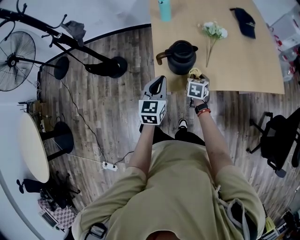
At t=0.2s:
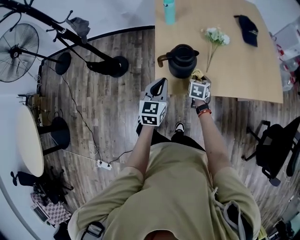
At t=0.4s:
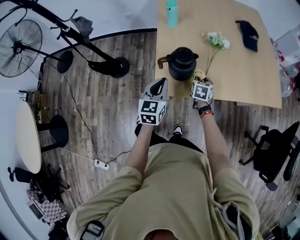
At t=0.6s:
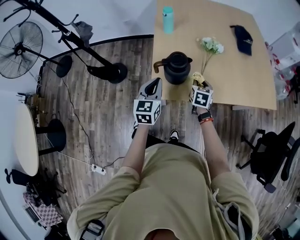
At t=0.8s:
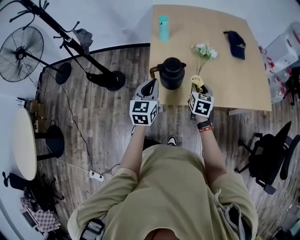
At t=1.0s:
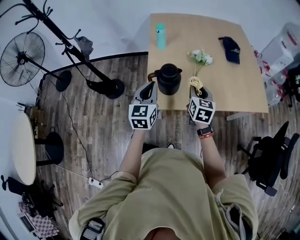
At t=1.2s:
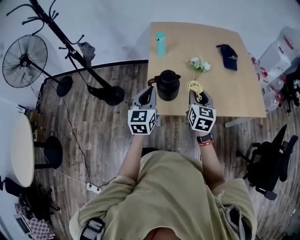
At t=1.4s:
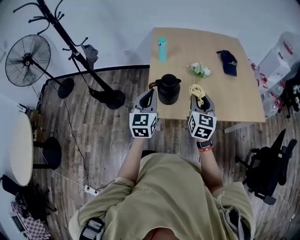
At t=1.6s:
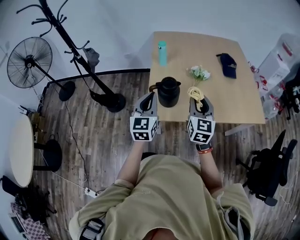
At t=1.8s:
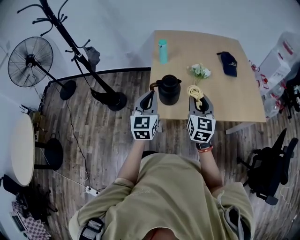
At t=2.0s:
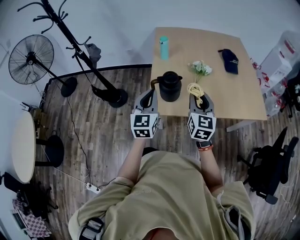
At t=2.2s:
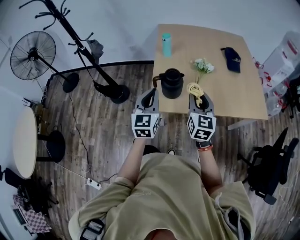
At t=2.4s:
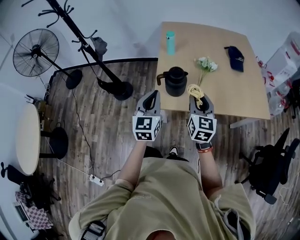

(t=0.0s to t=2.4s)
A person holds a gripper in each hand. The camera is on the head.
t=0.0s - t=1.2s: The right gripper moves upward, roughly 25 cm, and angles its fingers upward, by about 30 degrees. The left gripper goes roughly 15 cm upward.
t=1.2s - t=2.4s: The left gripper shifts some 5 cm backward; the right gripper moves backward and upward, roughly 10 cm.

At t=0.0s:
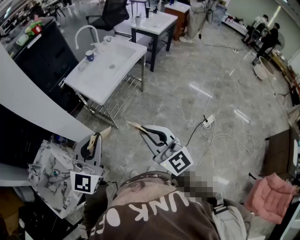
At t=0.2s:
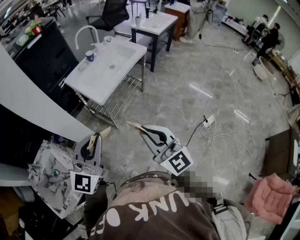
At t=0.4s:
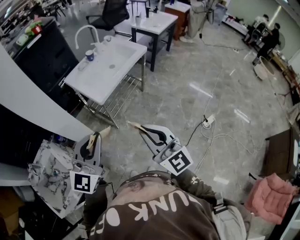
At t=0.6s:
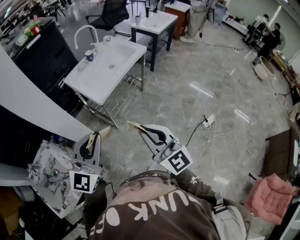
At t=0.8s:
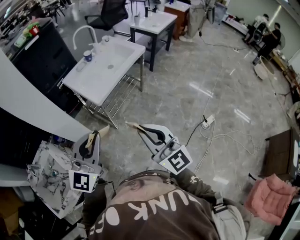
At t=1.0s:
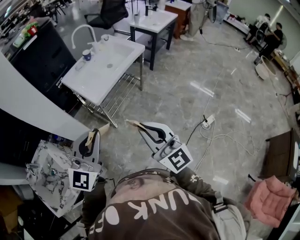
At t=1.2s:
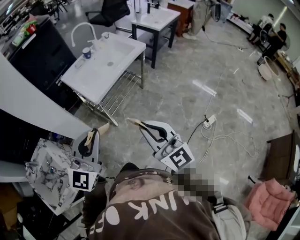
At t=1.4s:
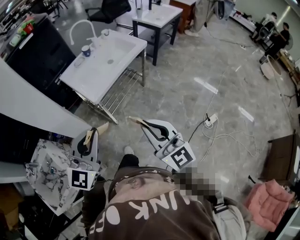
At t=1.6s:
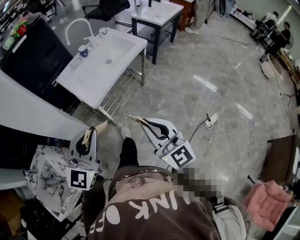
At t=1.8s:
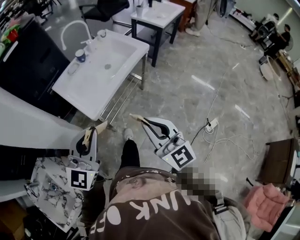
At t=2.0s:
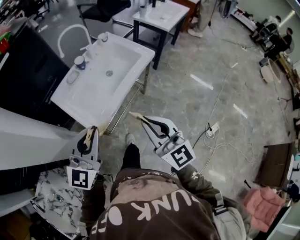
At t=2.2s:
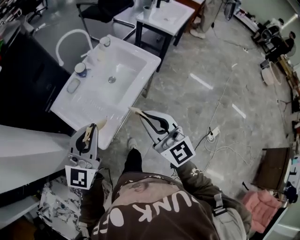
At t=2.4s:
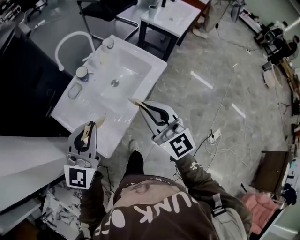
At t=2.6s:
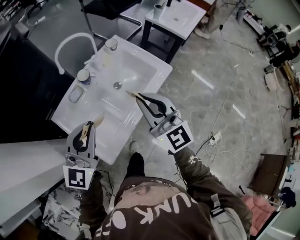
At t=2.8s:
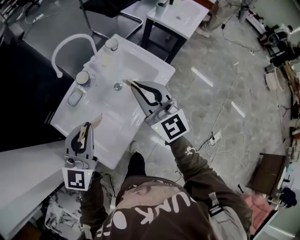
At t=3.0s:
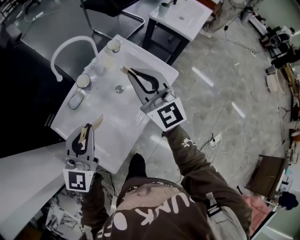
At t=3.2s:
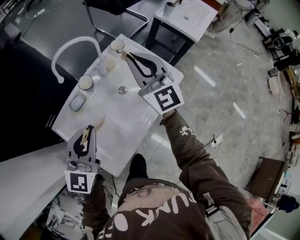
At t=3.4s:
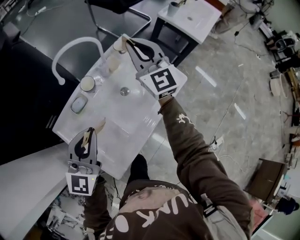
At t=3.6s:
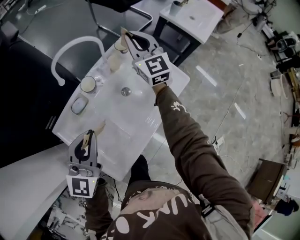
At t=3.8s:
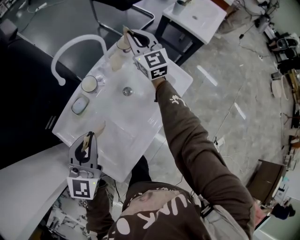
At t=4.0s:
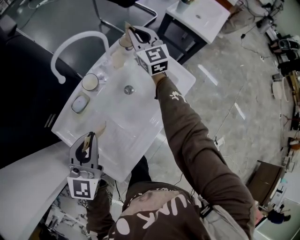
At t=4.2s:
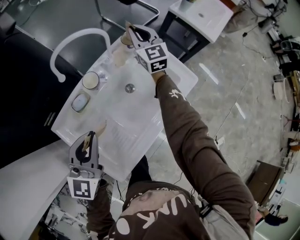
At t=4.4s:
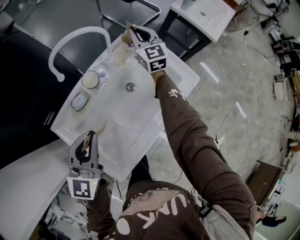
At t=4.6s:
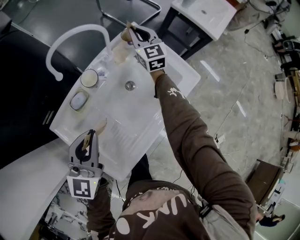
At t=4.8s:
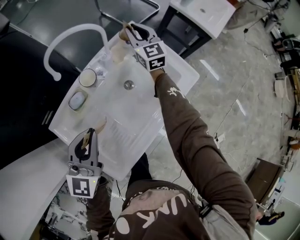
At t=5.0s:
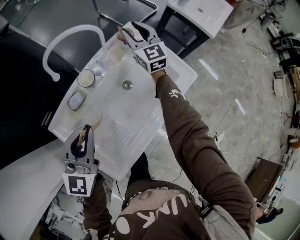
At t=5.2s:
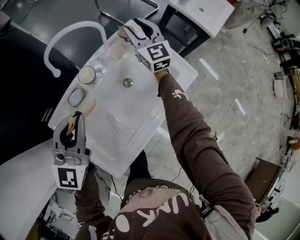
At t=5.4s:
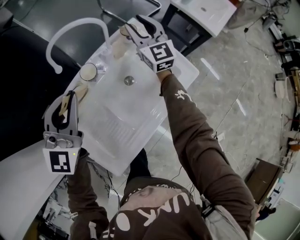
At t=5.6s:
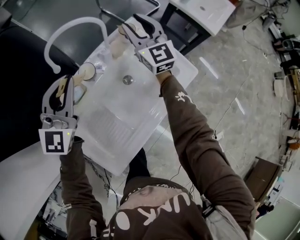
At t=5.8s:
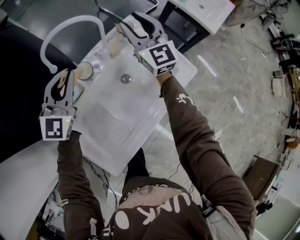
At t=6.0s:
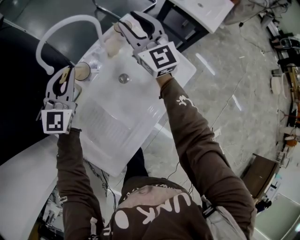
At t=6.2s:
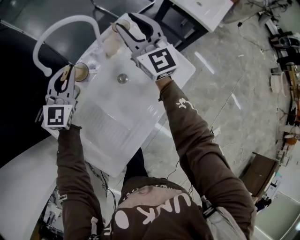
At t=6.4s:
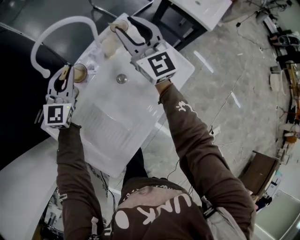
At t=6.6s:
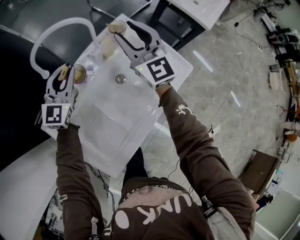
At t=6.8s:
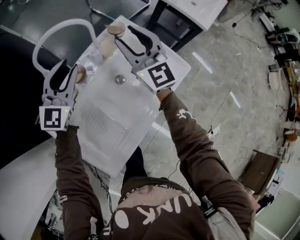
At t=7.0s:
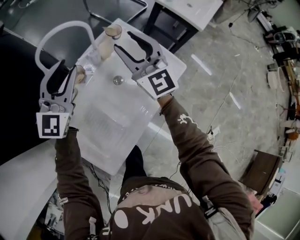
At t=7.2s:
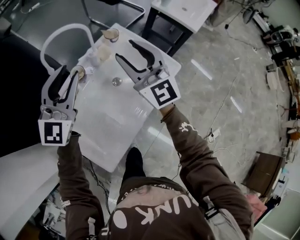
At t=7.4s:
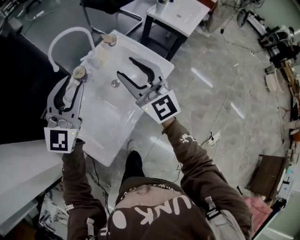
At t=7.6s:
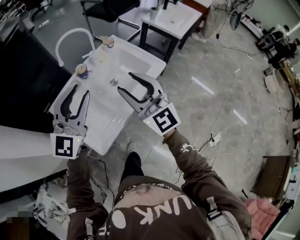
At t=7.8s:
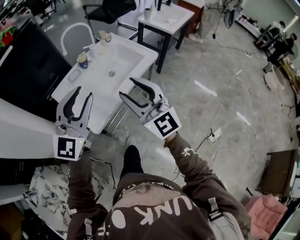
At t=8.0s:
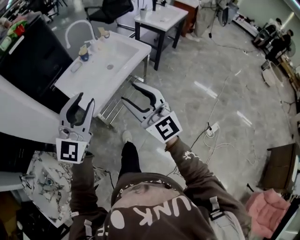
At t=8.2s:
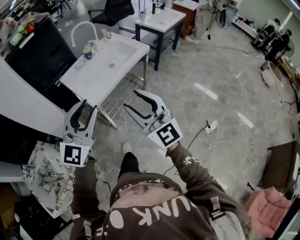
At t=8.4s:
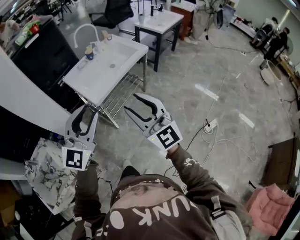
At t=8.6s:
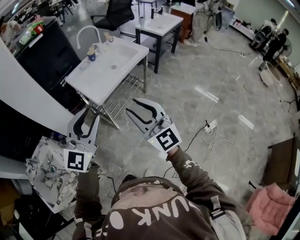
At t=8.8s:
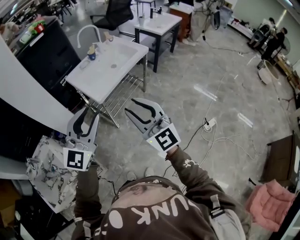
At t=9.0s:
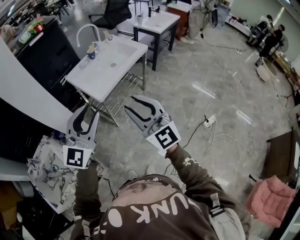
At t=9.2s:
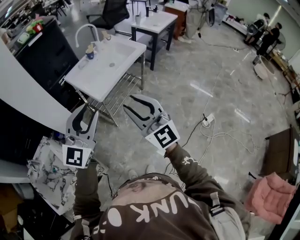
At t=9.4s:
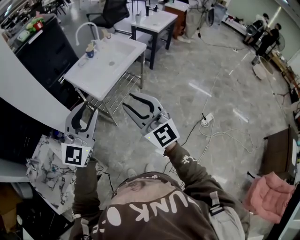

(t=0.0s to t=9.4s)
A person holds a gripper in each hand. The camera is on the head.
t=0.0s - t=1.6s: Both grippers travel together forward and to the right, about 15 cm.
t=1.6s - t=3.2s: Both grippers are carried forward, some 60 cm.
t=3.2s - t=4.8s: The left gripper is displaced downward by approximately 5 cm. Meanwhile the right gripper travels forward and downward by approximately 25 cm.
t=4.8s - t=6.2s: The right gripper goes some 10 cm upward and backward, while the left gripper is displaced forward by some 20 cm.
t=6.2s - t=7.8s: Both grippers are carried backward, about 50 cm. The left gripper goes approximately 20 cm upward, and opens its fingers.
t=7.8s - t=9.4s: Both grippers travel together backward, approximately 30 cm.

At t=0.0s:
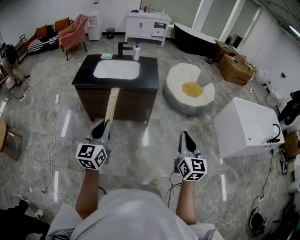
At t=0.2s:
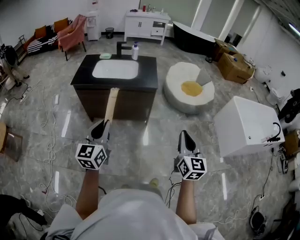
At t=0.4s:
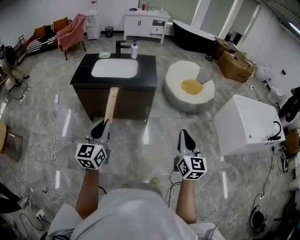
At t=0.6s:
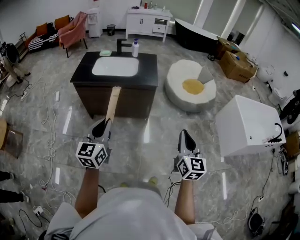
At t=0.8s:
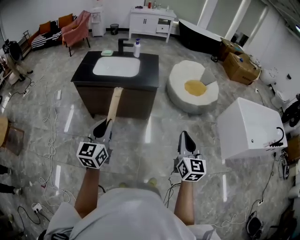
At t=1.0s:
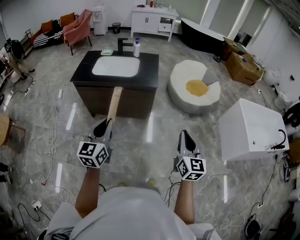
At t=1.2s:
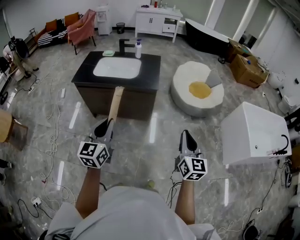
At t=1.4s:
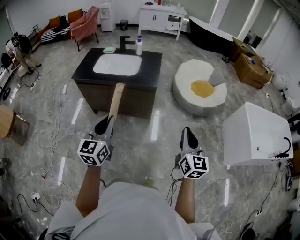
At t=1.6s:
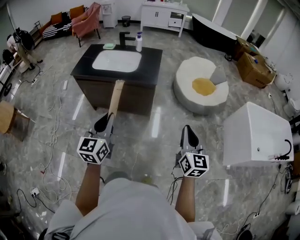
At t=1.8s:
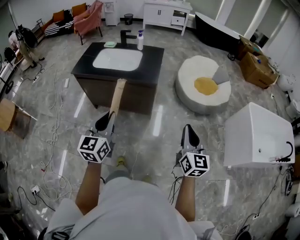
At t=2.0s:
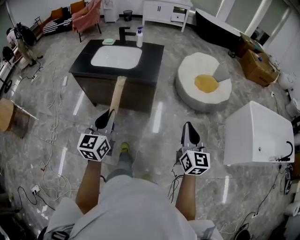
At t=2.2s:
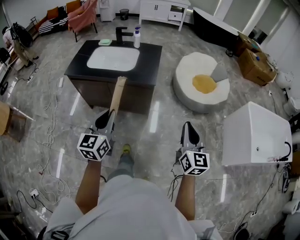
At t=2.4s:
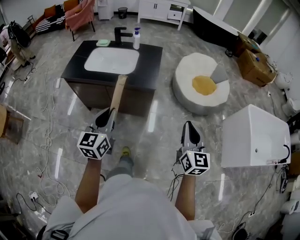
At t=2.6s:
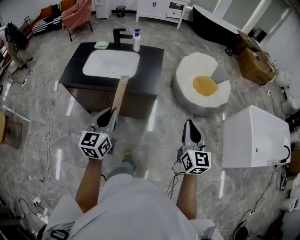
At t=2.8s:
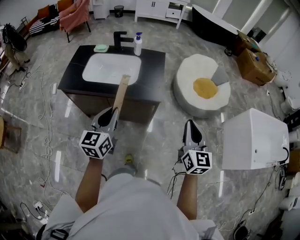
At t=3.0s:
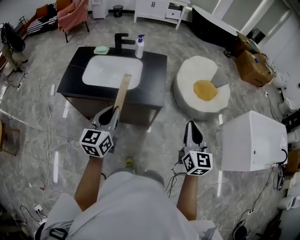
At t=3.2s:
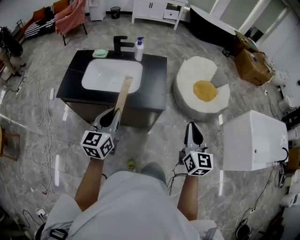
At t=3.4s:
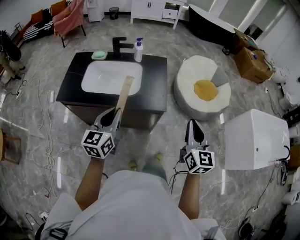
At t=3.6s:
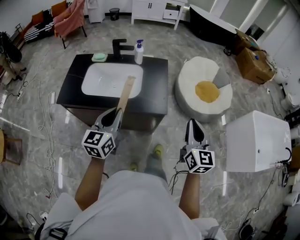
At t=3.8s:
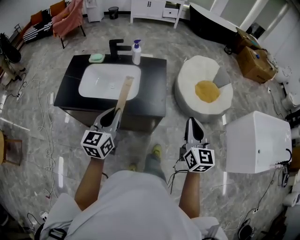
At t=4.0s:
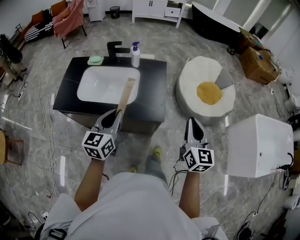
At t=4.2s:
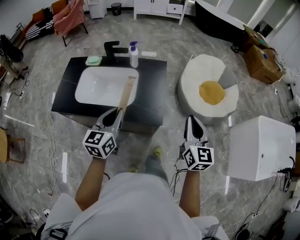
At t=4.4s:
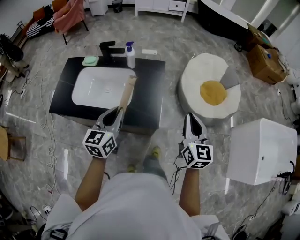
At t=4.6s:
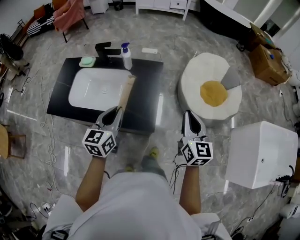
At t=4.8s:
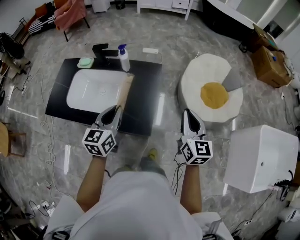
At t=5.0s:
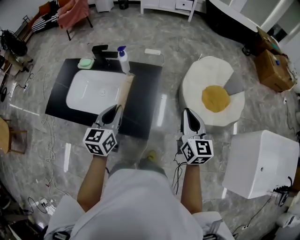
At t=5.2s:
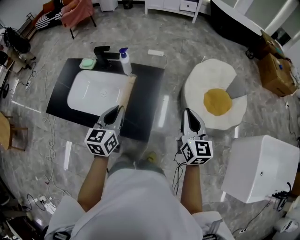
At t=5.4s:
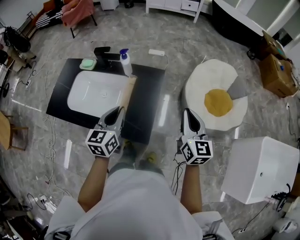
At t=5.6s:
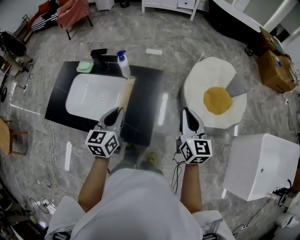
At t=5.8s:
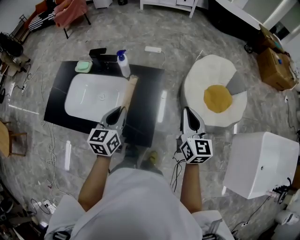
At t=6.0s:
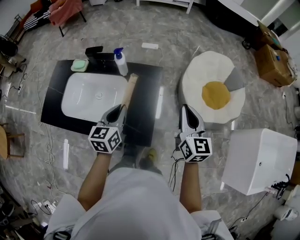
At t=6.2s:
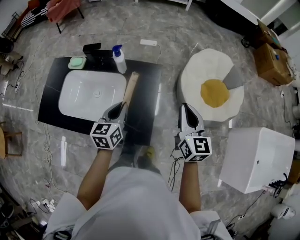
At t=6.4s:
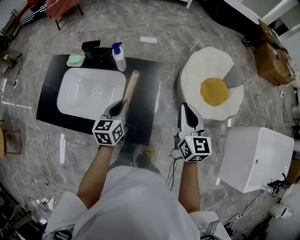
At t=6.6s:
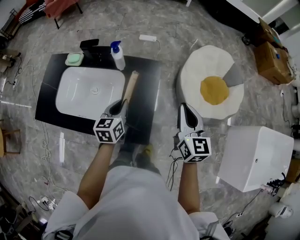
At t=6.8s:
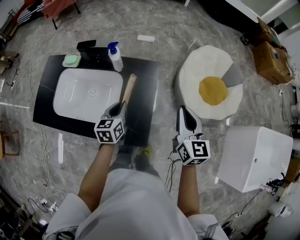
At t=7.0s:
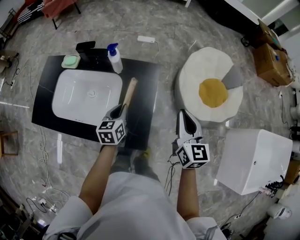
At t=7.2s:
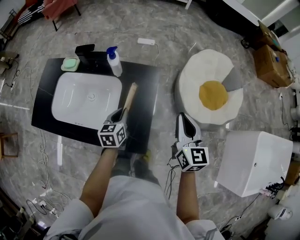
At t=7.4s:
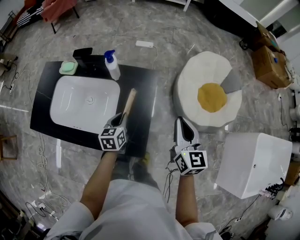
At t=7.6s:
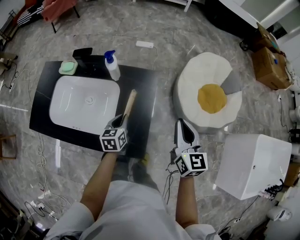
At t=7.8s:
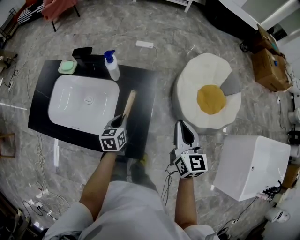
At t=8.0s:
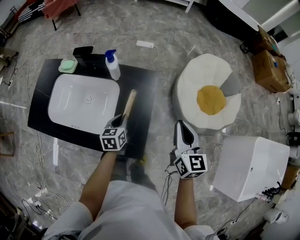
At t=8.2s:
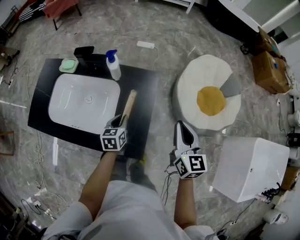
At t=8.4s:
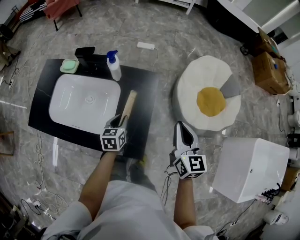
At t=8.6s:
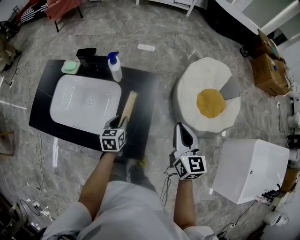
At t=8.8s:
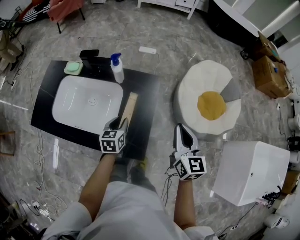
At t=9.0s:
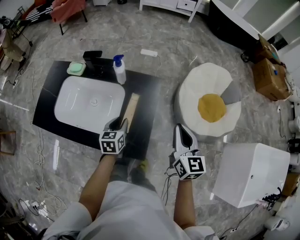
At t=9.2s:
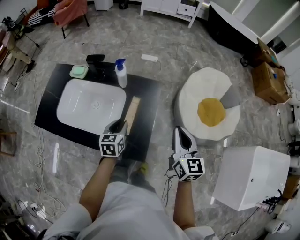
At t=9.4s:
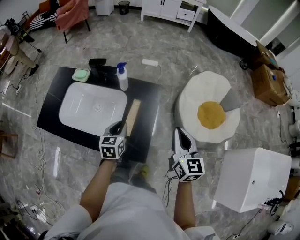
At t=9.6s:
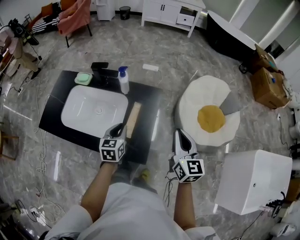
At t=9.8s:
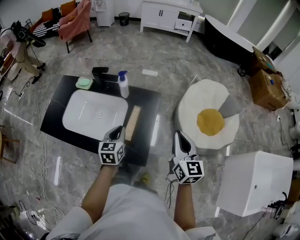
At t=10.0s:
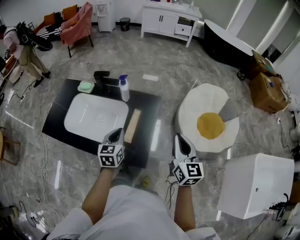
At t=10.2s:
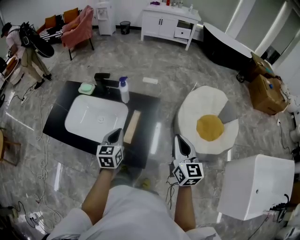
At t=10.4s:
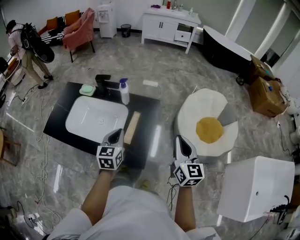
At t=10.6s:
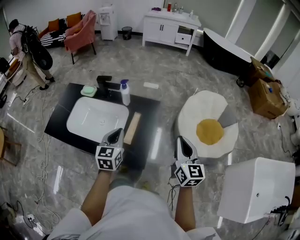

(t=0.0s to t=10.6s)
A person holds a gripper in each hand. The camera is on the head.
t=0.0s - t=1.6s: Both grippers travel together to the right and forward, approximately 20 cm.
t=1.6s - t=3.0s: The left gripper heads forward, covering approximately 30 cm. Meanwhile the right gripper goes approximately 30 cm forward and to the left.
t=3.0s - t=4.6s: The grippers both shift forward by roughly 30 cm.
t=4.6s - t=6.0s: The left gripper heads forward and downward, covering about 15 cm, while the right gripper travels forward by approximately 15 cm.
t=6.0s - t=7.6s: The right gripper shifts about 5 cm downward; the left gripper is displaced downward by about 15 cm.
t=7.6s - t=9.0s: The left gripper opens its fingers.
t=9.0s - t=10.6s: The right gripper is displaced backward and upward by some 10 cm. Meanwhile the left gripper heads upward and backward, covering about 20 cm, turns by approximately 20 degrees, and closes its fingers.

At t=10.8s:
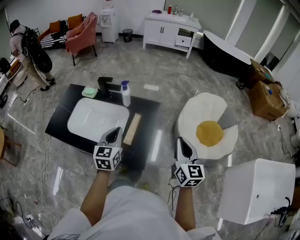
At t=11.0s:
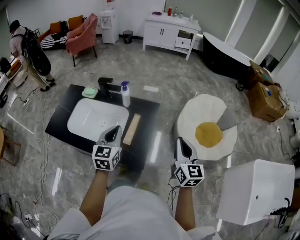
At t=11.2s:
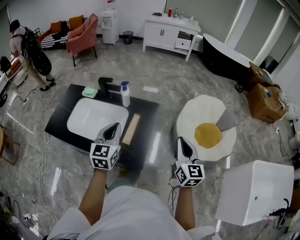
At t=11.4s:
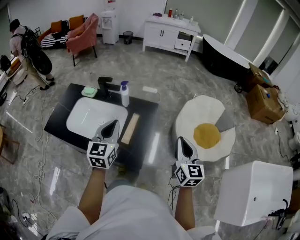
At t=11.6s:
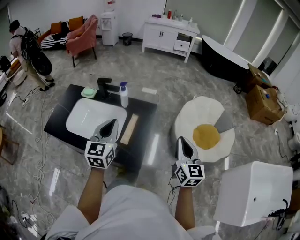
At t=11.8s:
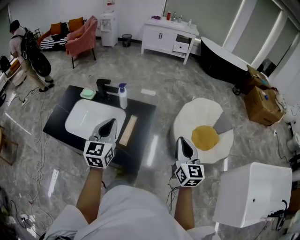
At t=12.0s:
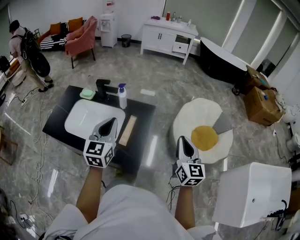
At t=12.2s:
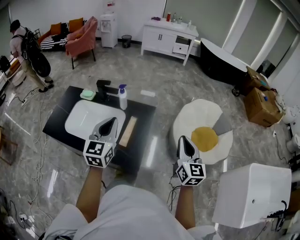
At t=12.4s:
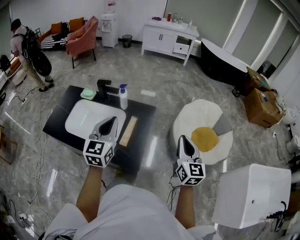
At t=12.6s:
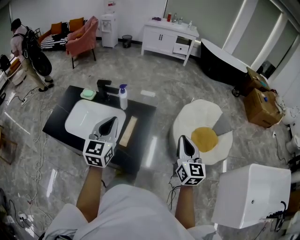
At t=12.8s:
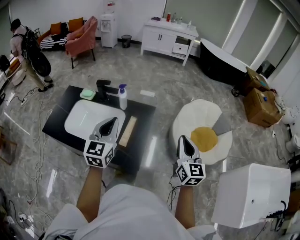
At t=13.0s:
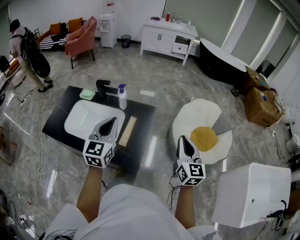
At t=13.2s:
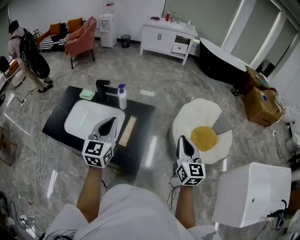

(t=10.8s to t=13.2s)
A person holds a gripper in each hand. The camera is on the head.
t=10.8s - t=12.0s: The left gripper heads upward, covering about 10 cm.
t=12.0s - t=13.2s: Neither gripper changes place.
